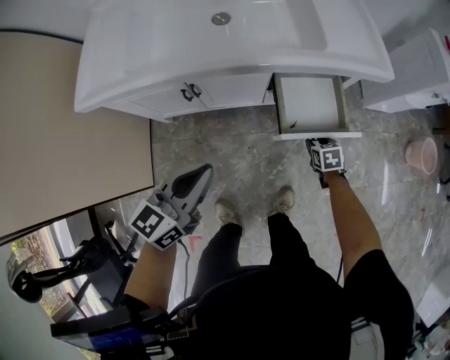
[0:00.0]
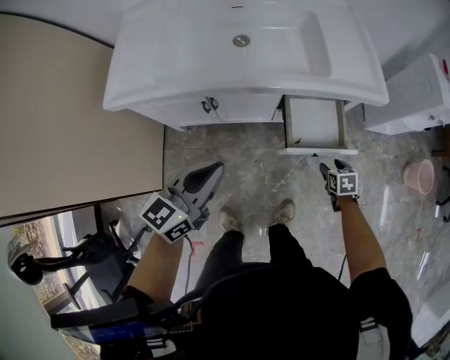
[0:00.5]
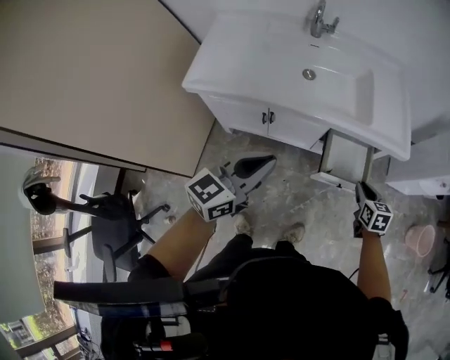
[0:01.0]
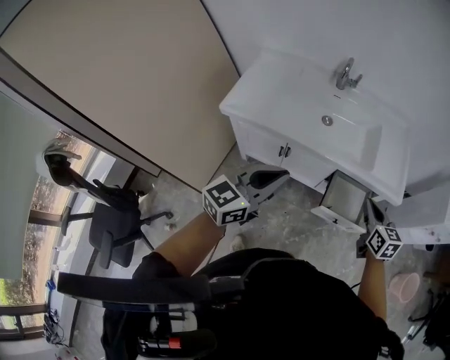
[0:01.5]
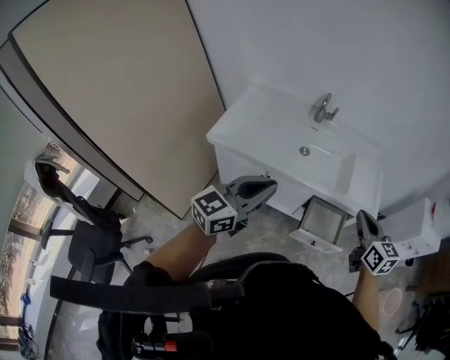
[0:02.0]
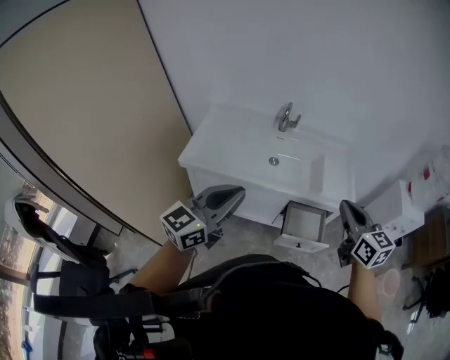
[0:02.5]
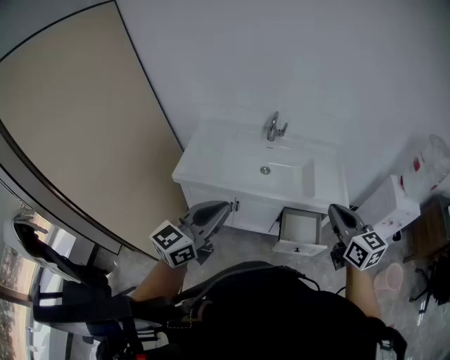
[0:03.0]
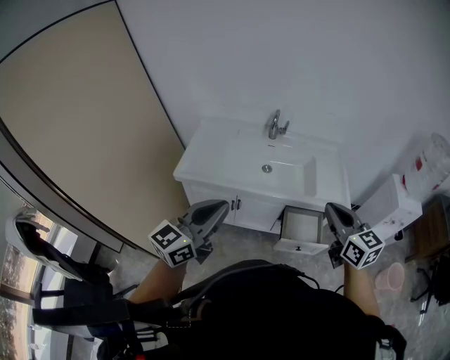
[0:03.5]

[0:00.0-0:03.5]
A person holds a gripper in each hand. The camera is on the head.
0:00.0 to 0:02.0: The right gripper moves upward, about 60 cm, tilts its fingers approximately 50 degrees upward, and closes. Meanwhile the left gripper is displaced upward by some 35 cm, and swivels approximately 20 degrees.
0:02.0 to 0:03.5: The left gripper ends up approximately 10 cm from where it was, while the right gripper heads upward and backward, covering about 10 cm.

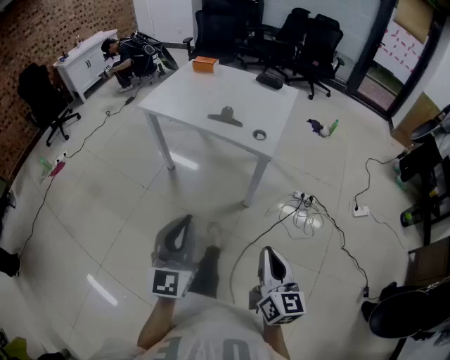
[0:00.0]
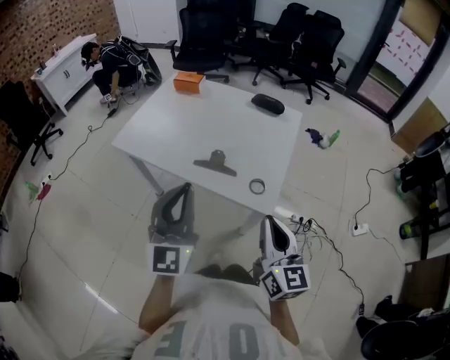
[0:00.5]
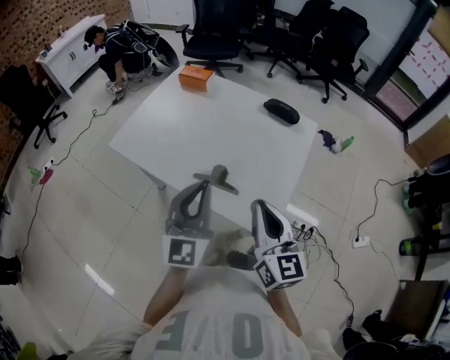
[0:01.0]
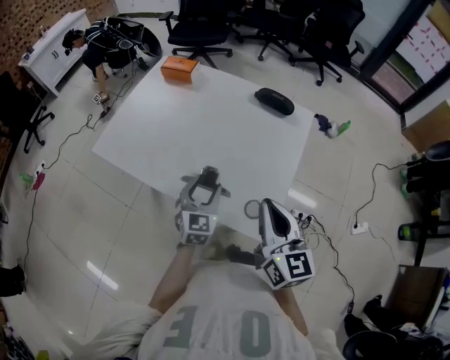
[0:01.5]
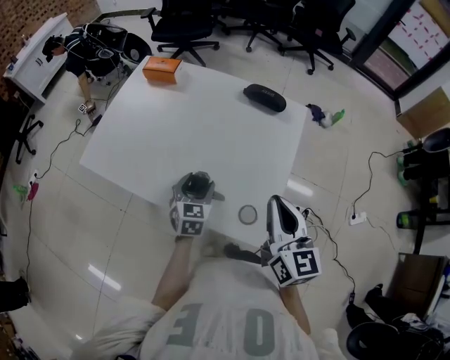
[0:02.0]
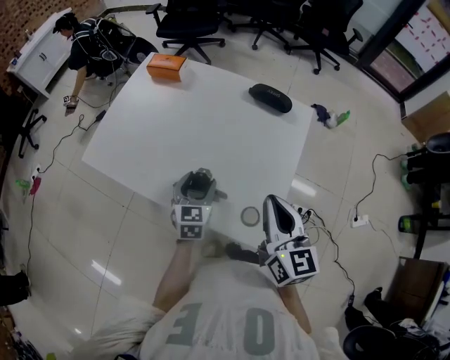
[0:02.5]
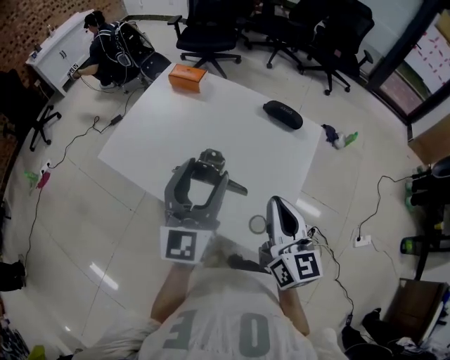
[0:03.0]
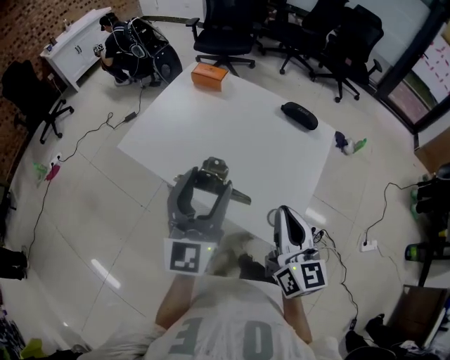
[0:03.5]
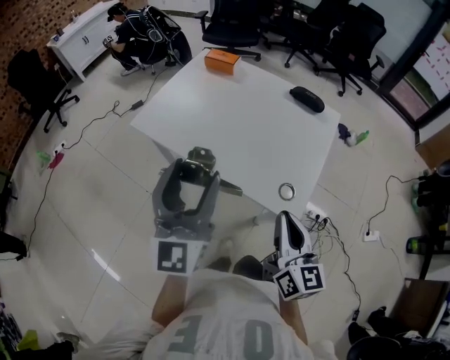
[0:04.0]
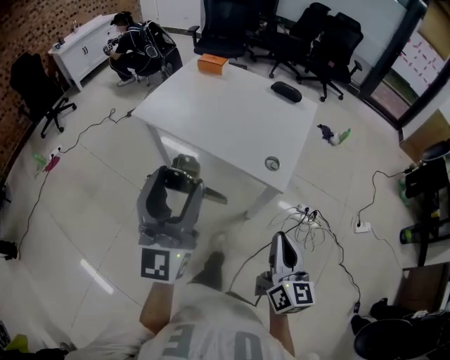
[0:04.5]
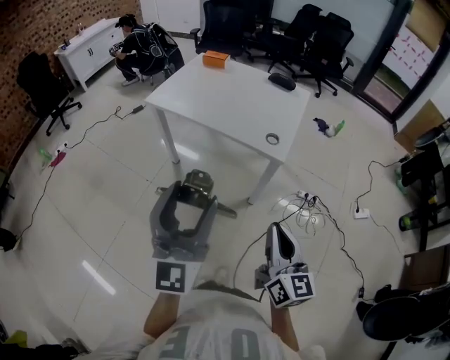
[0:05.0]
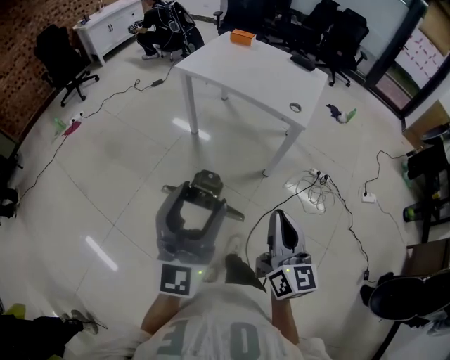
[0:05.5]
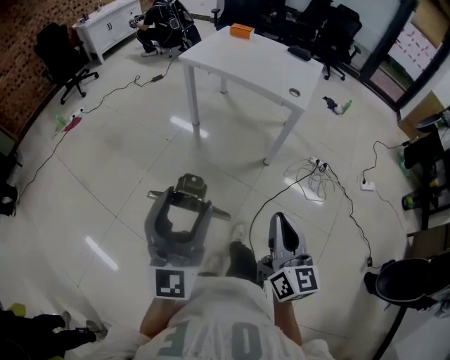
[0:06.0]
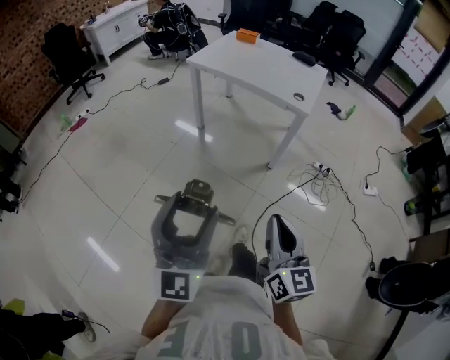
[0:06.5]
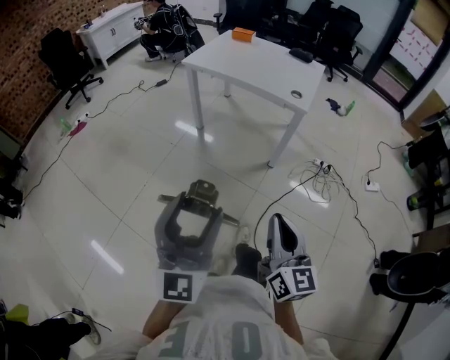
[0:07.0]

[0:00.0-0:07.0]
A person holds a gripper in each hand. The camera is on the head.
0:00.0 to 0:02.0: The pair of grippers is taken forward, about 60 cm. The left gripper moves downward, roughly 25 cm, tips its fingers downward by some 40 degrees, and opens.
0:02.0 to 0:03.5: The left gripper travels upward by some 30 cm, and points its fingers some 40 degrees further upward, while the right gripper heads to the left, covering about 5 cm.
0:03.5 to 0:05.0: The pair of grippers is taken backward, about 40 cm.
0:05.0 to 0:07.0: The right gripper goes roughly 25 cm backward and to the left; the left gripper shifts approximately 30 cm backward.

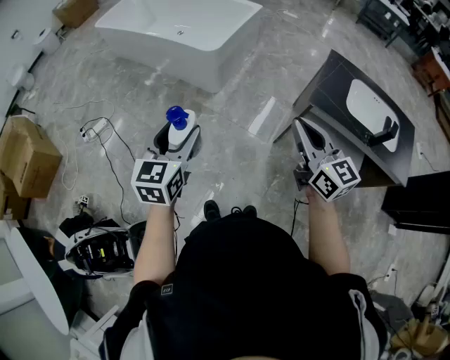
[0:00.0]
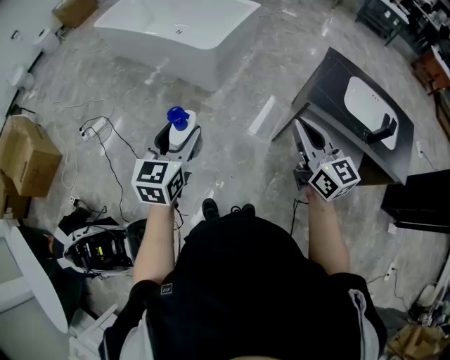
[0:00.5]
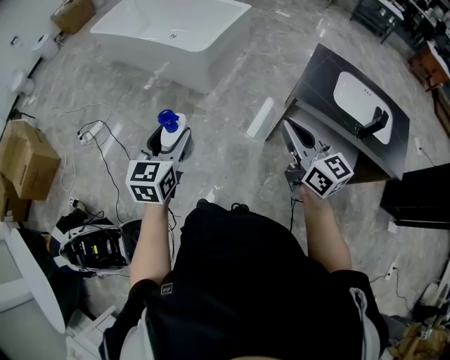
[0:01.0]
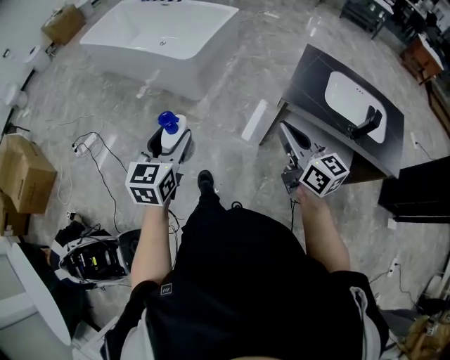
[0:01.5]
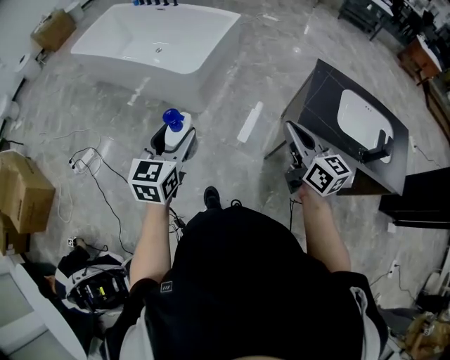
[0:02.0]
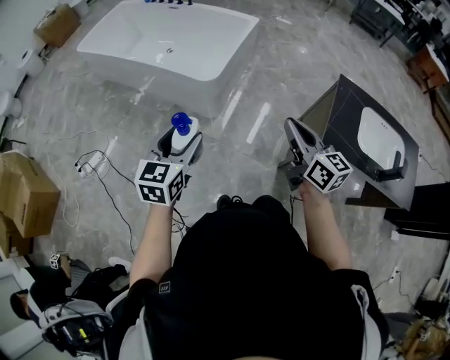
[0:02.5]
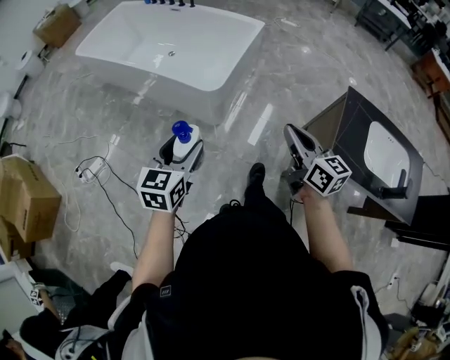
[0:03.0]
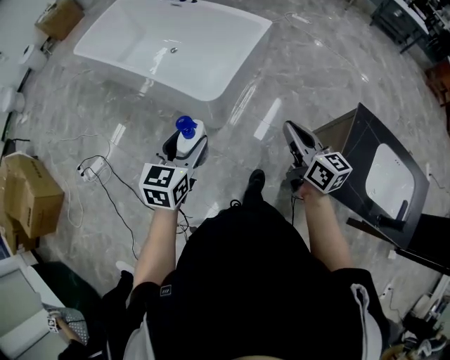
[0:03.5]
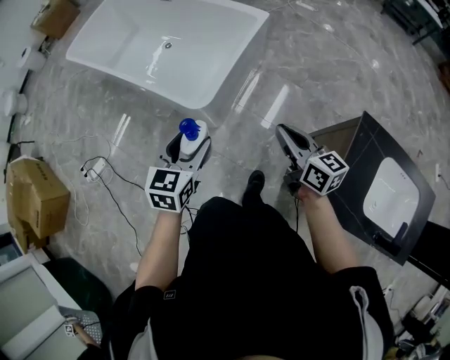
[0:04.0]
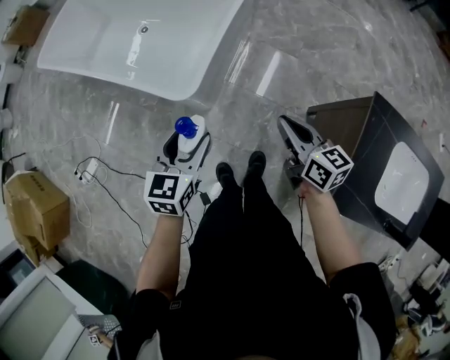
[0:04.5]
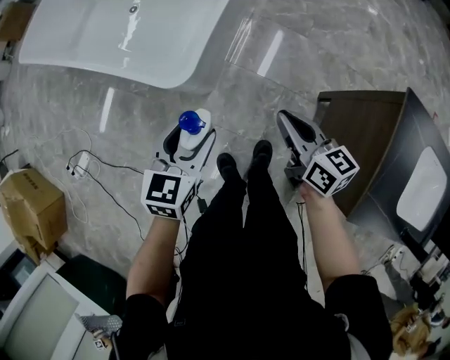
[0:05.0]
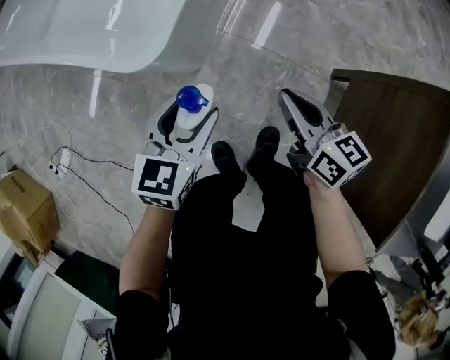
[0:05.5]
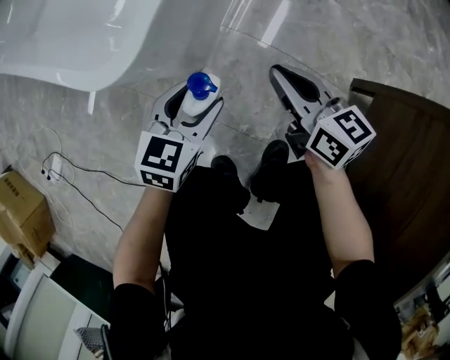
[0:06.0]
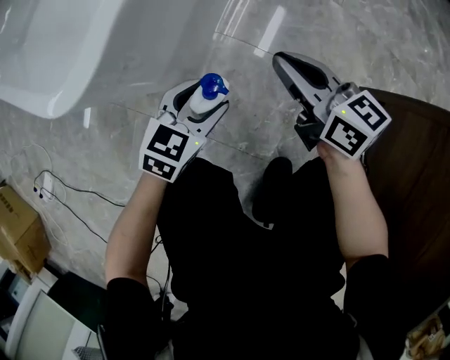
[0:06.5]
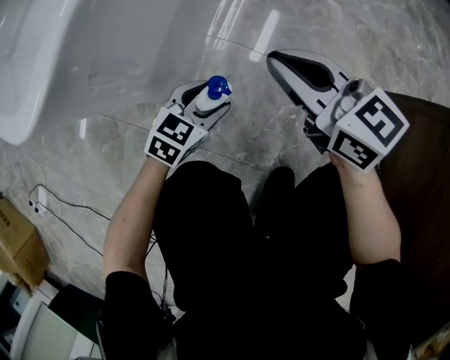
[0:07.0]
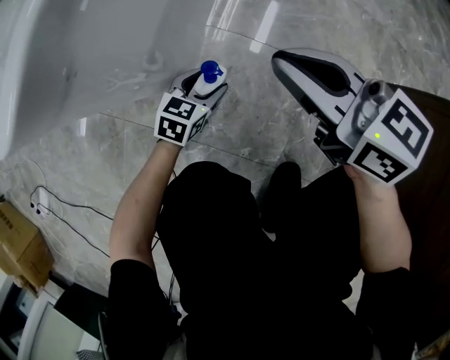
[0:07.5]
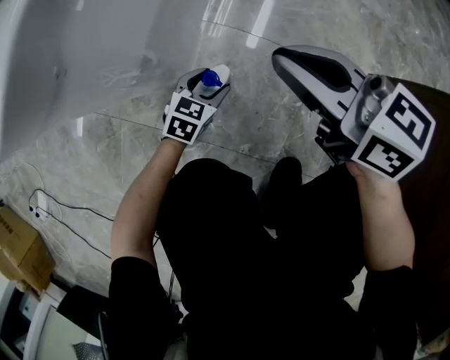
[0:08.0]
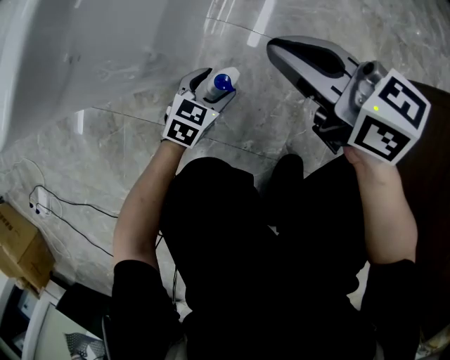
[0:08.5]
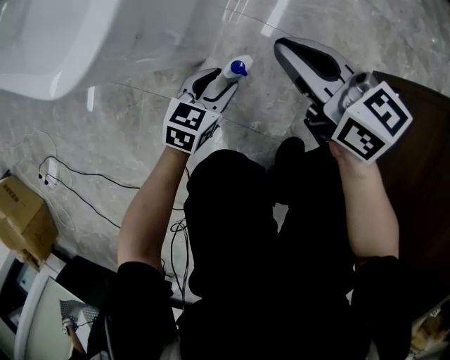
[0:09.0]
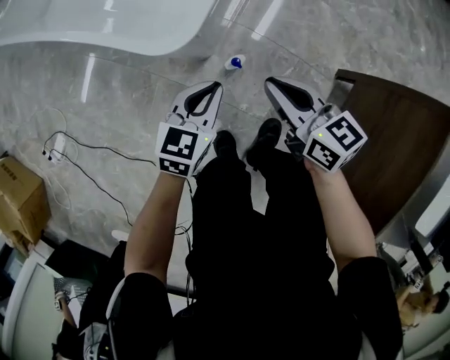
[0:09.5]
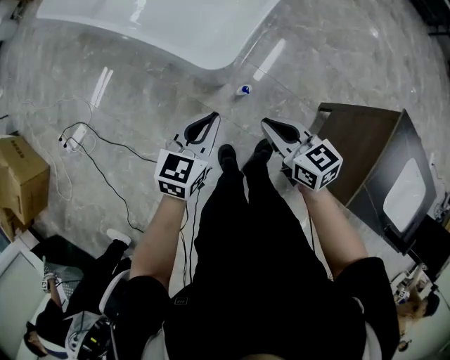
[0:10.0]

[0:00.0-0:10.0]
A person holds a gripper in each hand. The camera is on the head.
0:00.0 to 0:02.0: The grippers both shift forward and to the right by roughly 15 cm.
0:02.0 to 0:04.0: The two grippers travel together, forward, roughly 40 cm.
0:04.0 to 0:06.0: Both grippers move downward, some 60 cm.
0:06.0 to 0:08.0: The left gripper is displaced downward by about 35 cm. Meanwhile the right gripper moves downward, some 10 cm.
0:08.0 to 0:10.0: The right gripper is displaced upward by approximately 50 cm, while the left gripper heads upward, covering some 80 cm, swivels approximately 30 degrees, and closes.

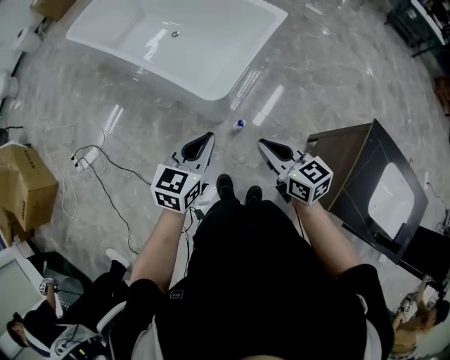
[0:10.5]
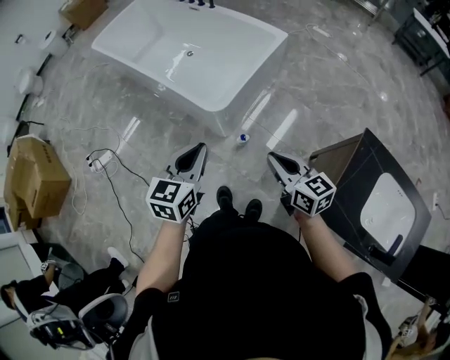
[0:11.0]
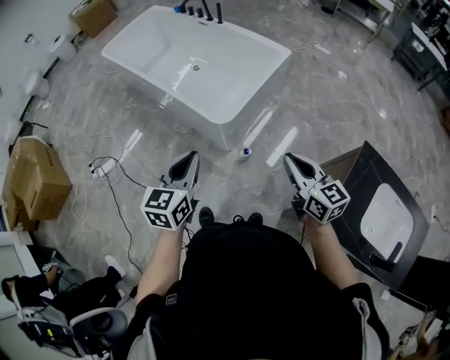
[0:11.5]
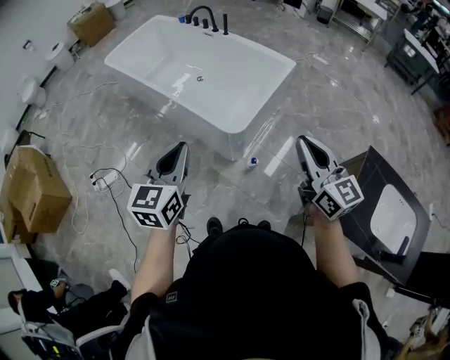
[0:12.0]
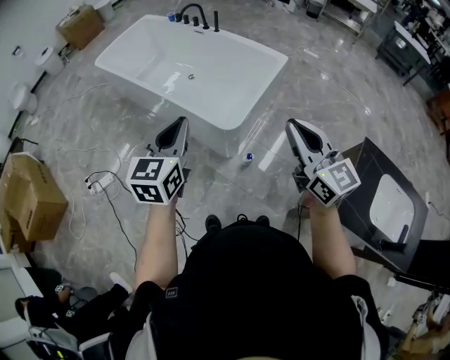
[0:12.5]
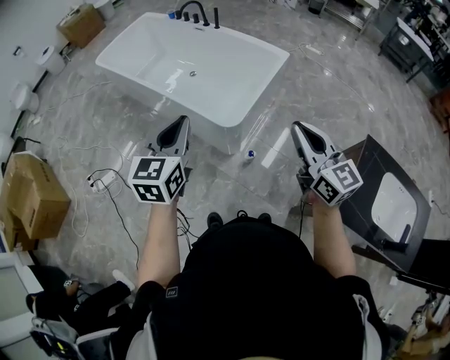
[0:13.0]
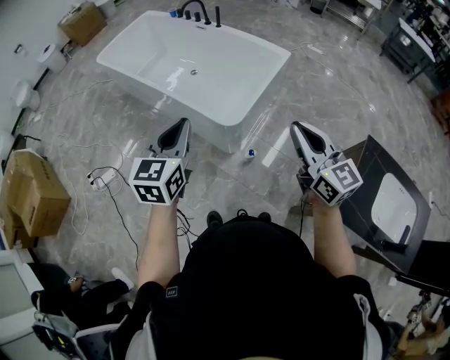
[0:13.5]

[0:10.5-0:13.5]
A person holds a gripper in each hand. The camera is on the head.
0:10.5 to 0:12.0: The right gripper heads upward, covering some 20 cm, and rotates roughly 30 degrees. The left gripper travels upward and to the left by approximately 20 cm.
0:12.0 to 0:13.5: There are only small adjustments of the grippers.

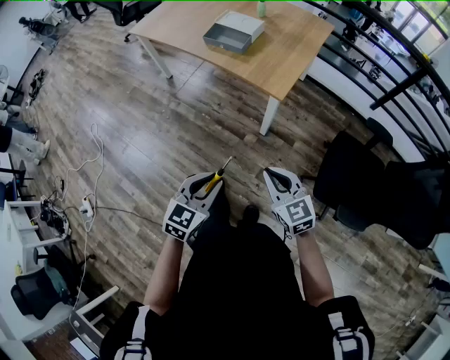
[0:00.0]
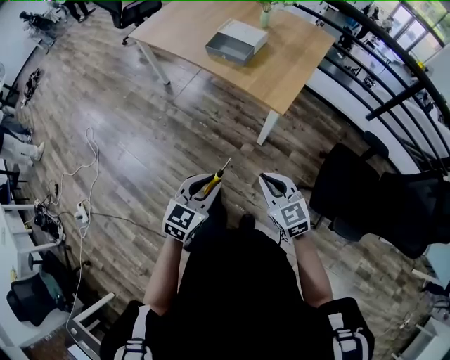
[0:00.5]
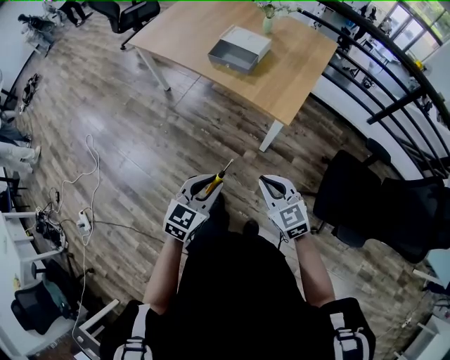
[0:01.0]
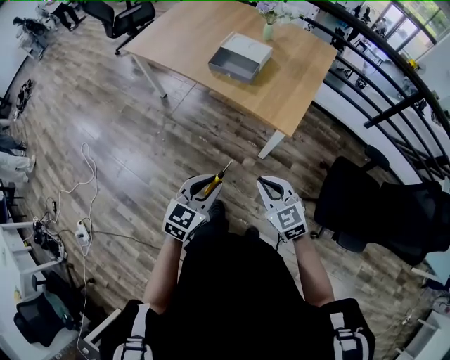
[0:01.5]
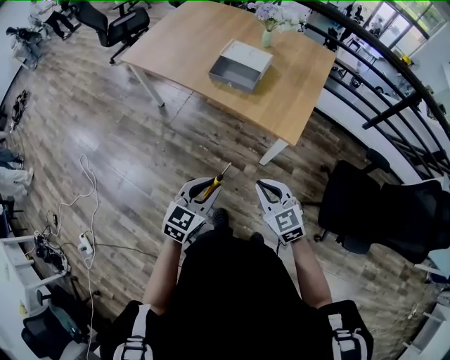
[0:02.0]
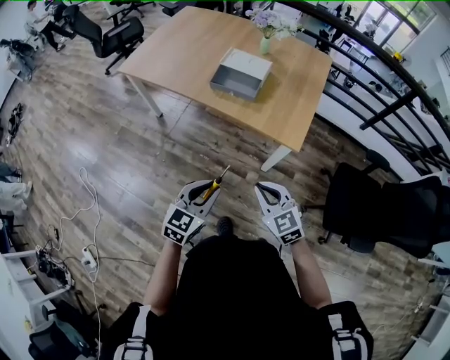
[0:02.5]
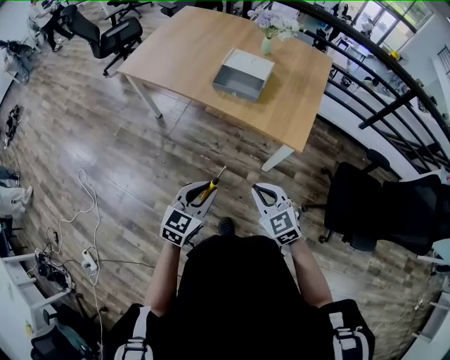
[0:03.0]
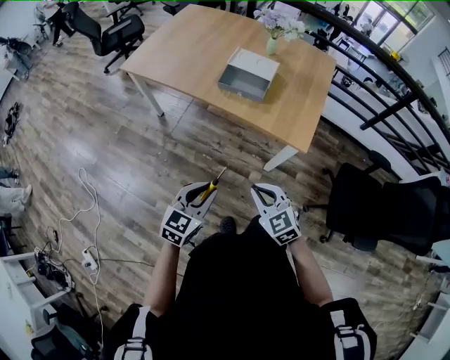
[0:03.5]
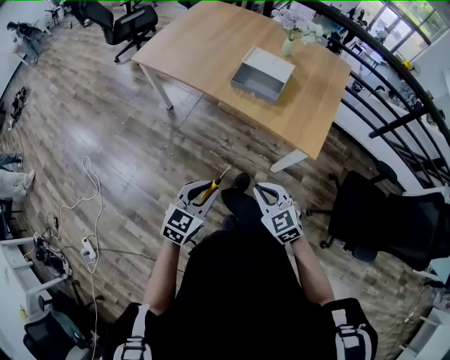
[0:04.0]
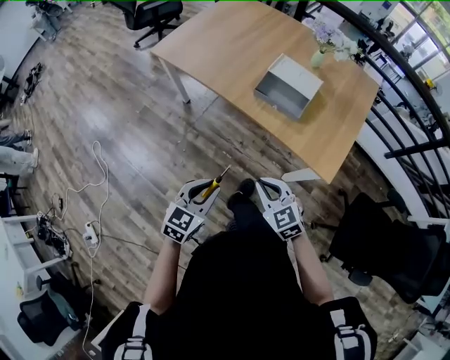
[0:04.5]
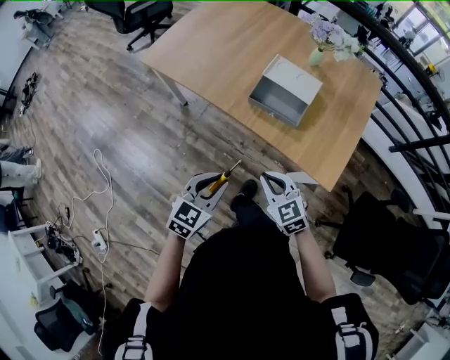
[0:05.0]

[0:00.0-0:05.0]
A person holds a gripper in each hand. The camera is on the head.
0:00.0 to 0:02.5: The two grippers go about 25 cm forward and to the left.
0:02.5 to 0:05.0: Both grippers move forward and to the left, some 20 cm.
